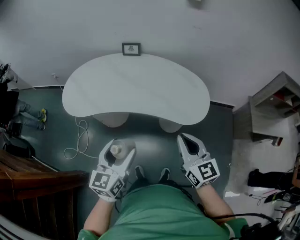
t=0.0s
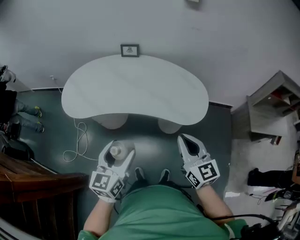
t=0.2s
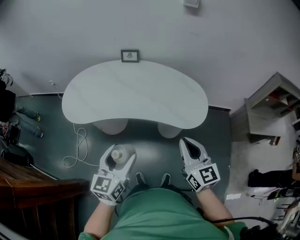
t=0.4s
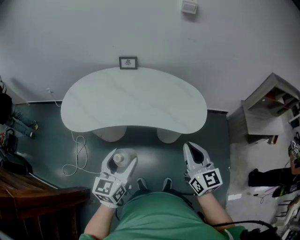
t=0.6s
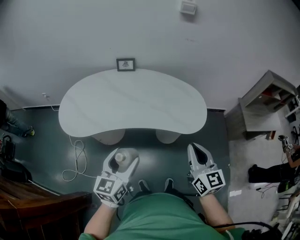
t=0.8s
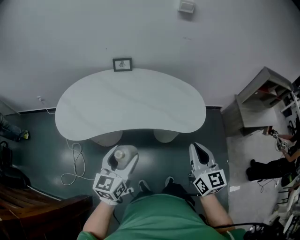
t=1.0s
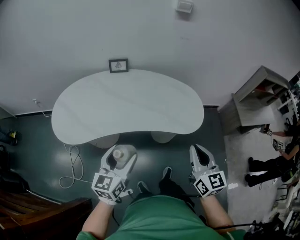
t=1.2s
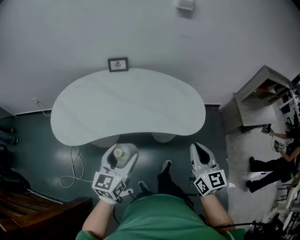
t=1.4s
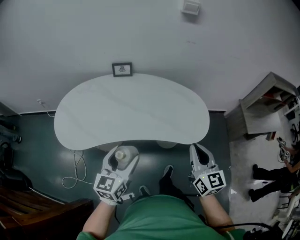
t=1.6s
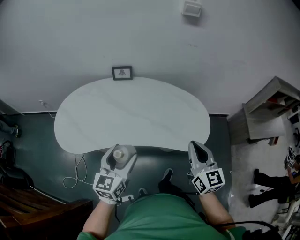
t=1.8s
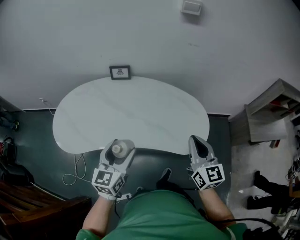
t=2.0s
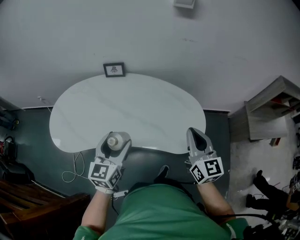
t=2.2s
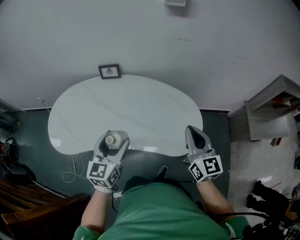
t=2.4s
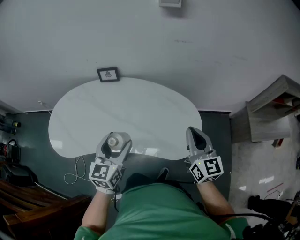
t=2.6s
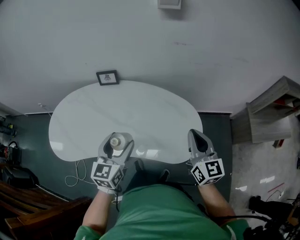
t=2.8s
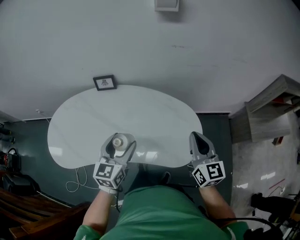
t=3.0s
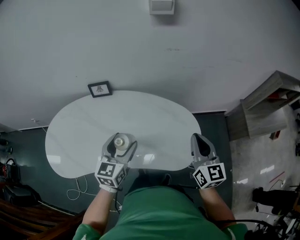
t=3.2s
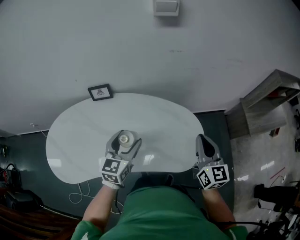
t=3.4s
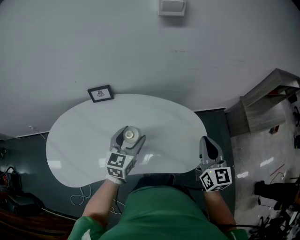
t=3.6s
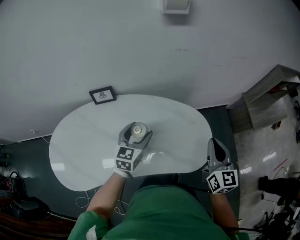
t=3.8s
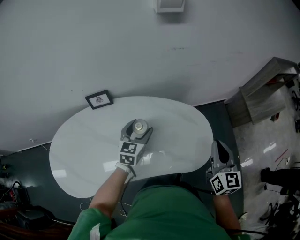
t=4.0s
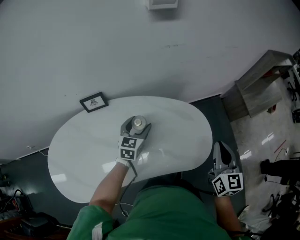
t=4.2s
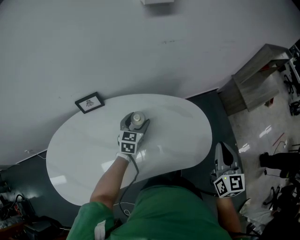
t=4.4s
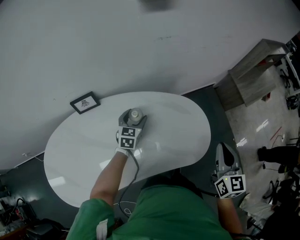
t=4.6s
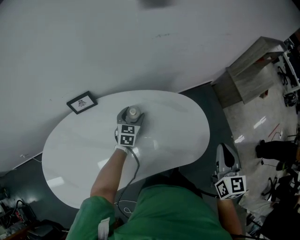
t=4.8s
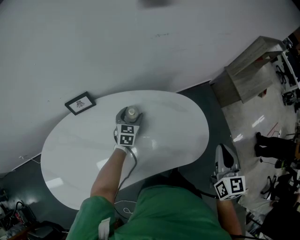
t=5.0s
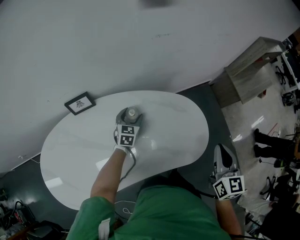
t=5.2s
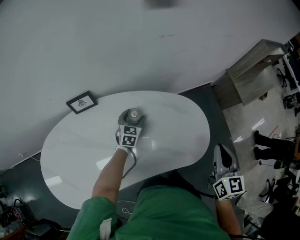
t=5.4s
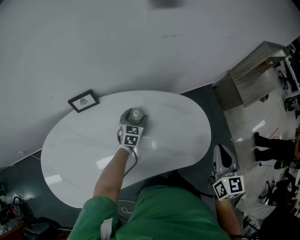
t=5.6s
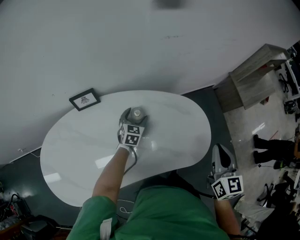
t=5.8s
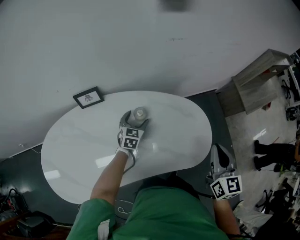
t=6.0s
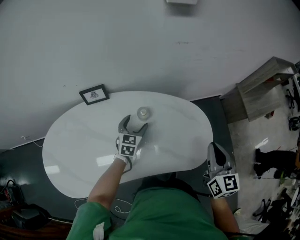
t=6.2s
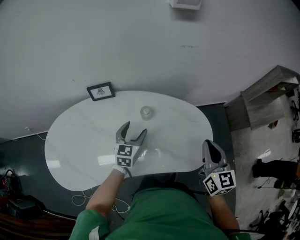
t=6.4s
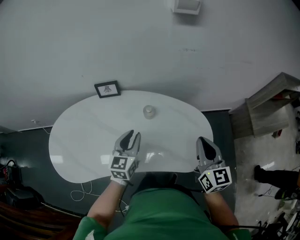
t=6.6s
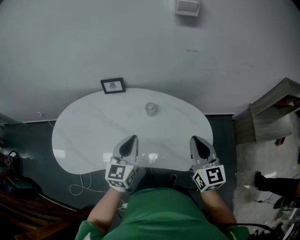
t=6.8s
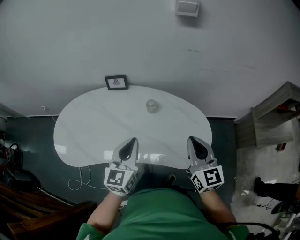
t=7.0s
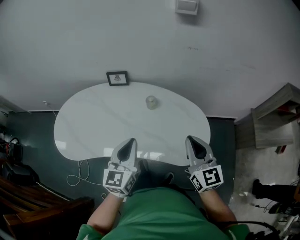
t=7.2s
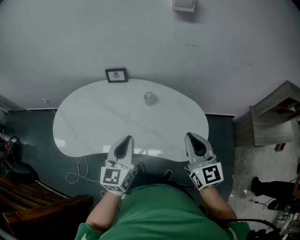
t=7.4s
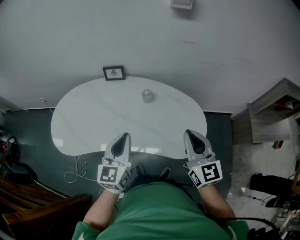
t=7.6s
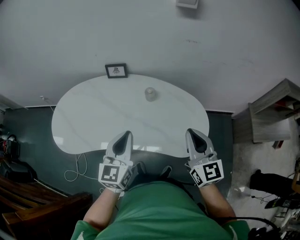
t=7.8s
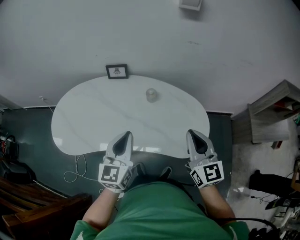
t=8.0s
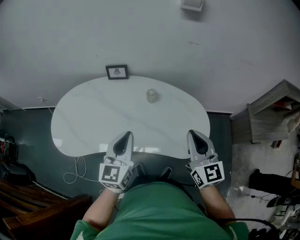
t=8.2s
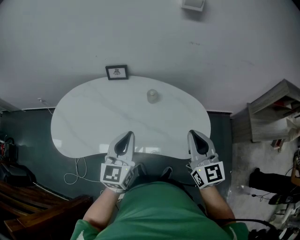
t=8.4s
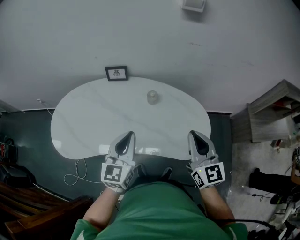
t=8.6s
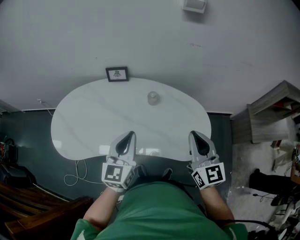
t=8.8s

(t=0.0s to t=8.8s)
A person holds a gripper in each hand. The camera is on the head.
t=0.0s - t=1.4s: The left gripper goes approximately 10 cm forward and to the left, while the right gripper changes its angle by some 20 degrees.
t=1.4s - t=3.0s: Both grippers move forward and to the right, approximately 30 cm.
t=3.0s - t=4.4s: The left gripper moves forward and downward, roughly 30 cm, and changes its angle by some 20 degrees, while the right gripper rotates about 30 degrees.
t=4.4s - t=5.8s: The left gripper is displaced downward by some 10 cm.
t=5.8s - t=7.4s: The right gripper changes place by about 10 cm, and turns by approximately 40 degrees, while the left gripper moves roughly 40 cm, turns by about 40 degrees, and closes.
t=7.4s - t=8.8s: The grippers stay close to where they were, moving slightly.

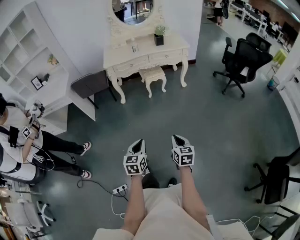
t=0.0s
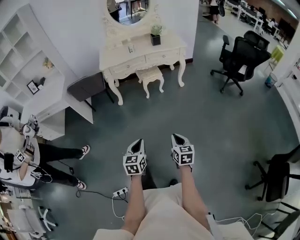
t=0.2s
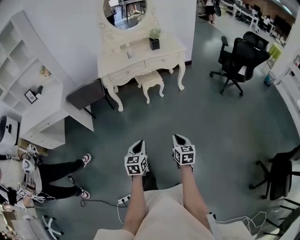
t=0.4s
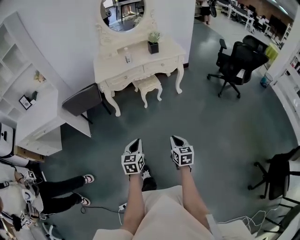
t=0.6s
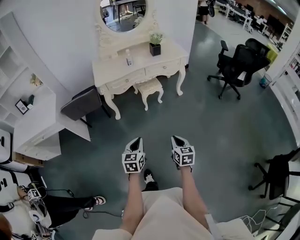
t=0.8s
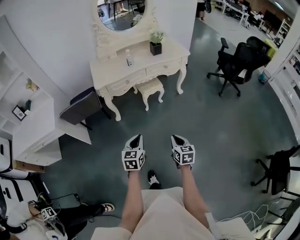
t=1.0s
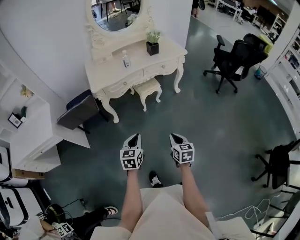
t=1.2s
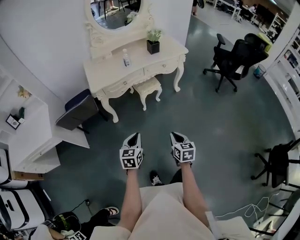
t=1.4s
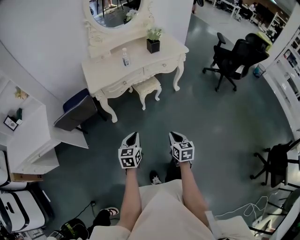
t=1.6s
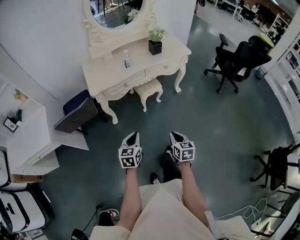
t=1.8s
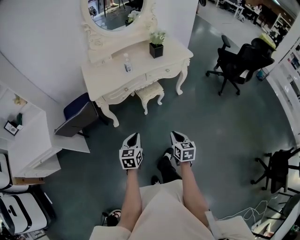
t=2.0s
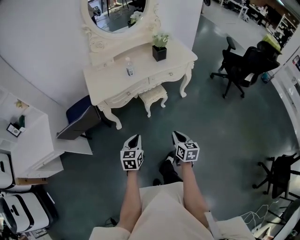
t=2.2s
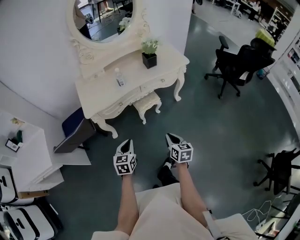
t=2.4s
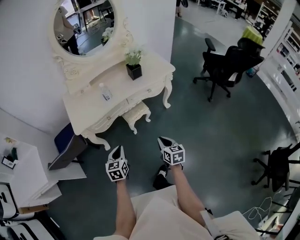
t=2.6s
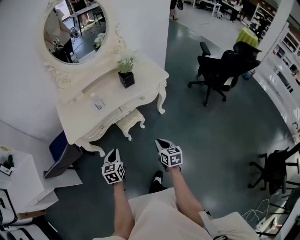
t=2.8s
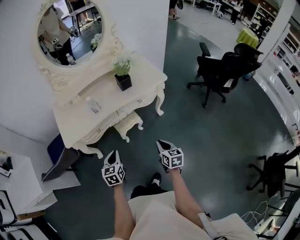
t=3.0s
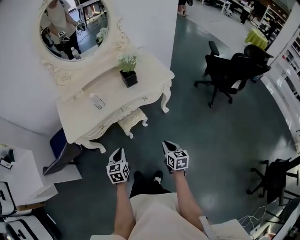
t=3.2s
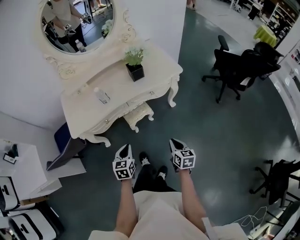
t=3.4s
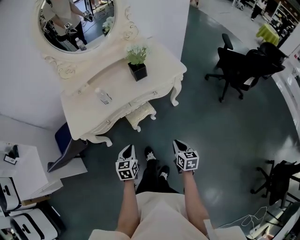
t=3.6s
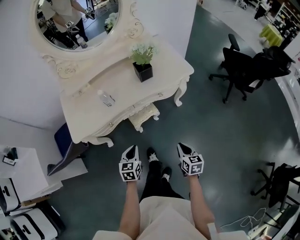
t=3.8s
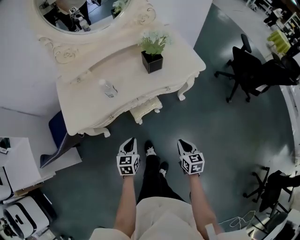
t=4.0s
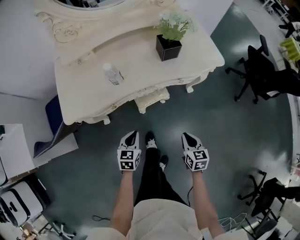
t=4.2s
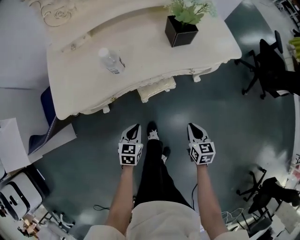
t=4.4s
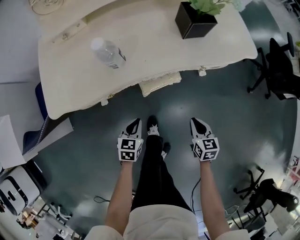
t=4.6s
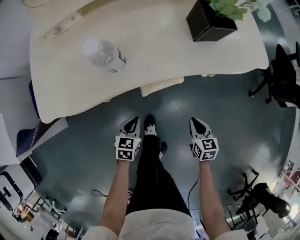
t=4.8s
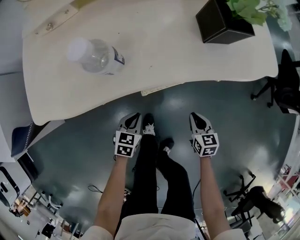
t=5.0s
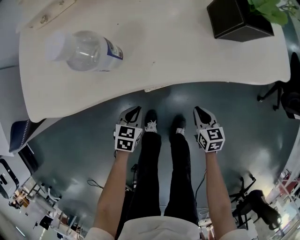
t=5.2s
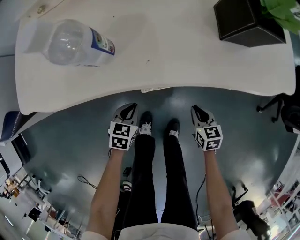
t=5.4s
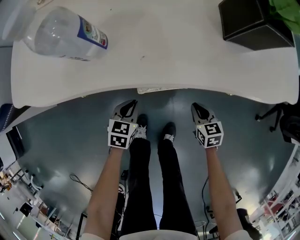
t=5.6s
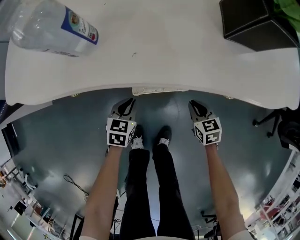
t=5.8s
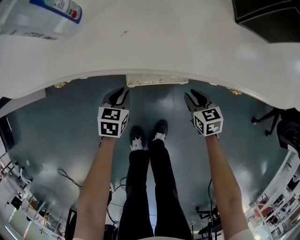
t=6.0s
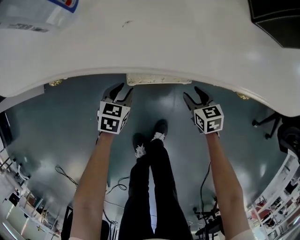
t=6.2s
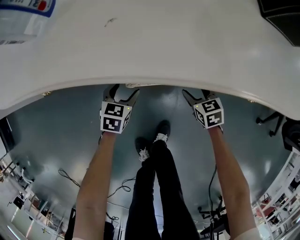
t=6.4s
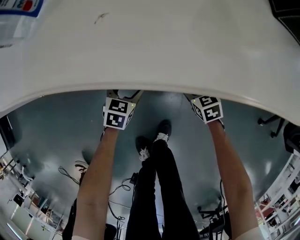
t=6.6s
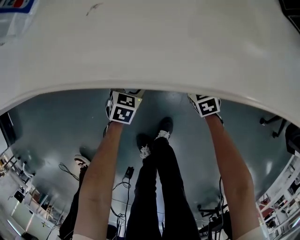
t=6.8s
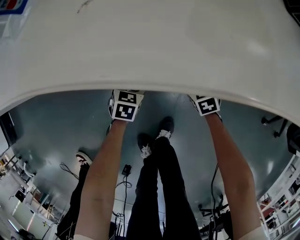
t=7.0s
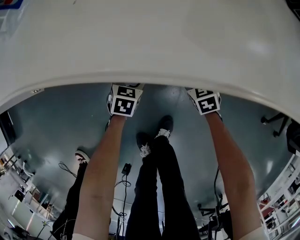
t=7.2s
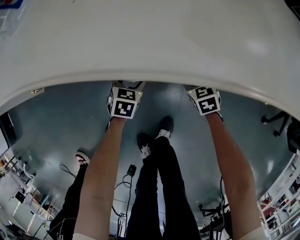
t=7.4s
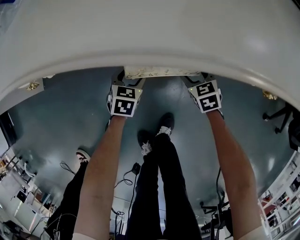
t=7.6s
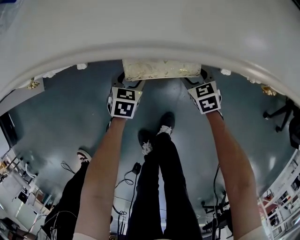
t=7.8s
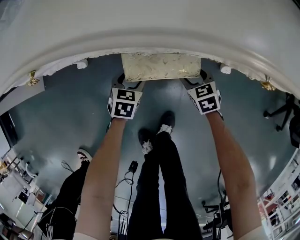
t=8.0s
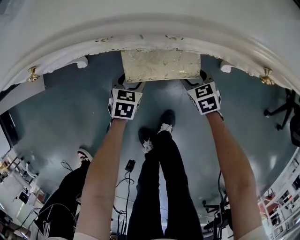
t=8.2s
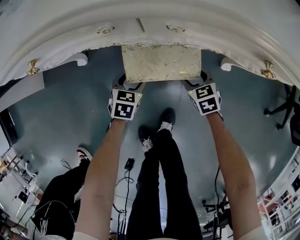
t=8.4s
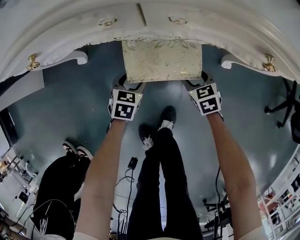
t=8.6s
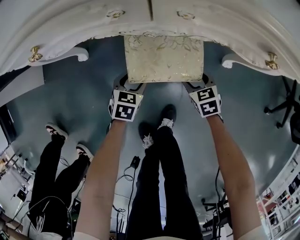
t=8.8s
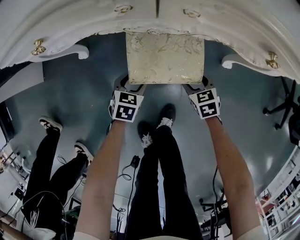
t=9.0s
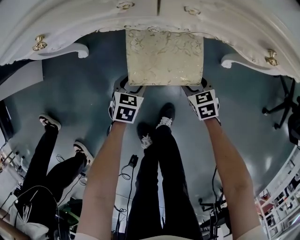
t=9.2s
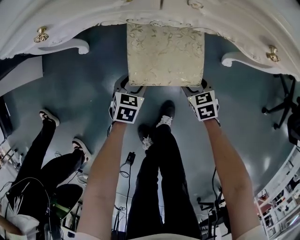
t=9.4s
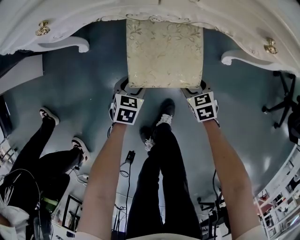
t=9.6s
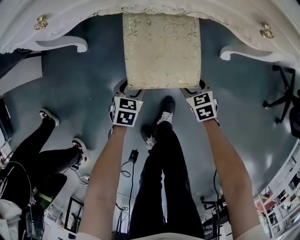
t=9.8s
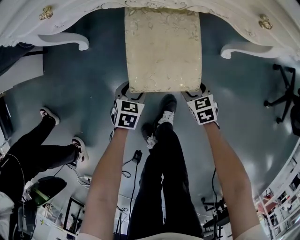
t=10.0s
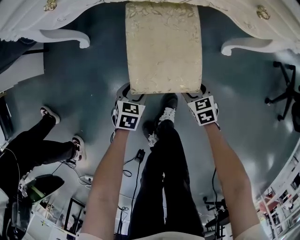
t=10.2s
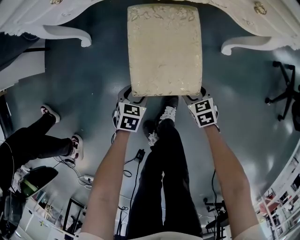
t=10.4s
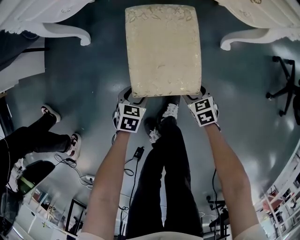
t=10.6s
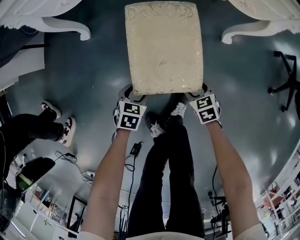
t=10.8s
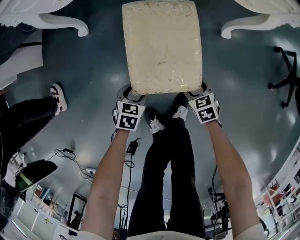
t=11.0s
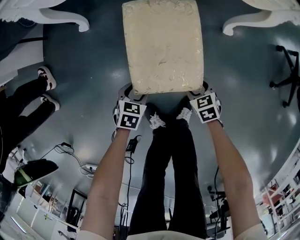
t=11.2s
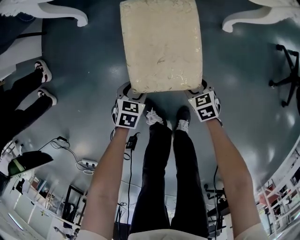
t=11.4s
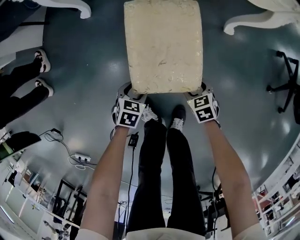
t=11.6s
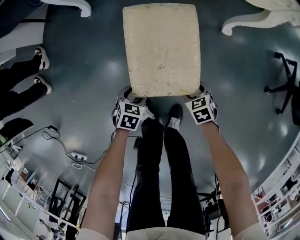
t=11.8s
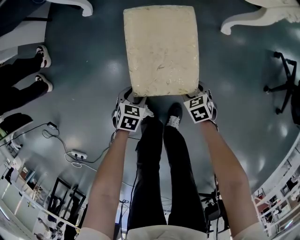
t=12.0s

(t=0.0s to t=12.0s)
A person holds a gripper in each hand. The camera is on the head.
t=0.0s - t=1.6s: Both grippers move forward and to the left, approximately 40 cm.
t=1.6s - t=3.0s: The right gripper is displaced forward and to the right by about 30 cm. Meanwhile the left gripper moves forward, about 30 cm.
t=3.0s - t=4.4s: The grippers both shift downward and forward by some 25 cm.
t=4.4s - t=6.0s: Both grippers move downward, some 25 cm. The right gripper rotates approximately 40 degrees.
t=6.0s - t=7.6s: The two grippers go roughly 10 cm downward. The left gripper opens. Meanwhile the right gripper opens up.
t=7.6s - t=9.0s: Both grippers move backward, some 10 cm.
t=9.0s - t=10.4s: The grippers both shift backward by roughly 15 cm.
t=10.4s - t=12.0s: The two grippers go roughly 20 cm backward.

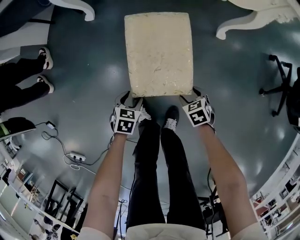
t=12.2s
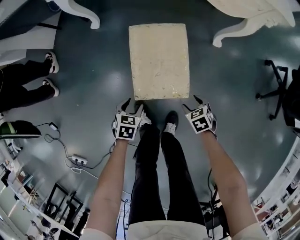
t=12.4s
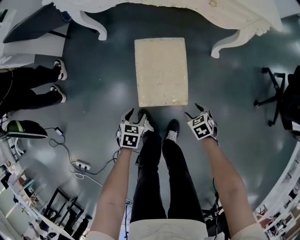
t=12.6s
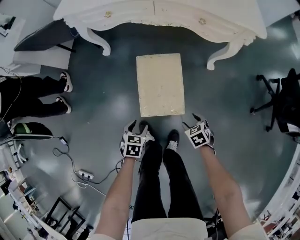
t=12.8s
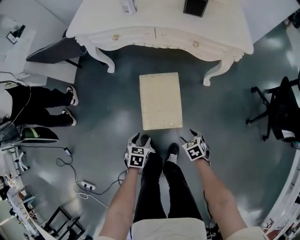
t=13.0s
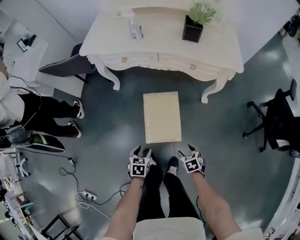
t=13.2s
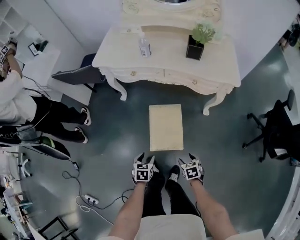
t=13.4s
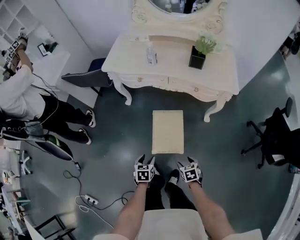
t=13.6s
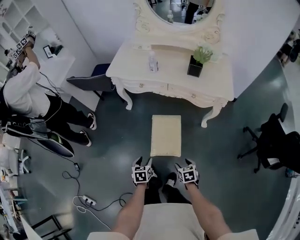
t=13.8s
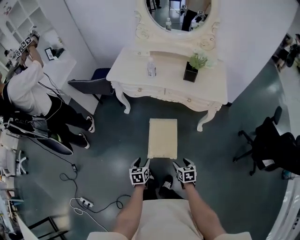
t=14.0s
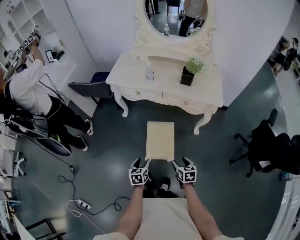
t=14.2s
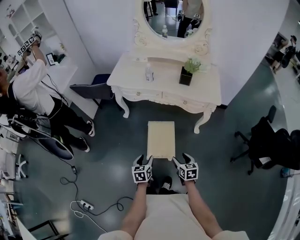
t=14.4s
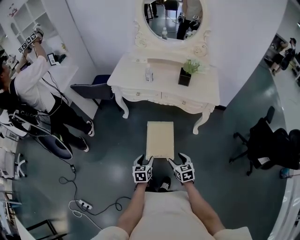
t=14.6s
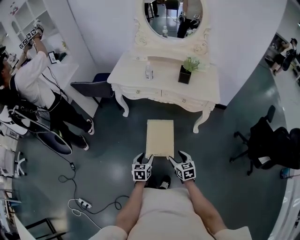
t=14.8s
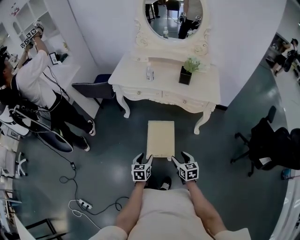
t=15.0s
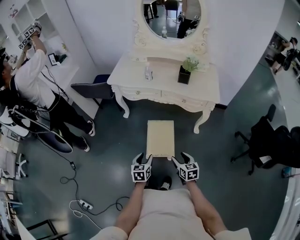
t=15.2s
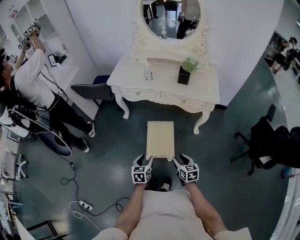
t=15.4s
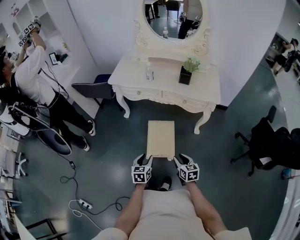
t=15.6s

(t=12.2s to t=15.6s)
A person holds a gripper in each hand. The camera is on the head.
t=12.2s - t=13.8s: The two grippers go some 40 cm upward. The left gripper changes its angle by about 30 degrees.
t=13.8s - t=15.6s: Both grippers move upward, roughly 10 cm. The right gripper rotates some 20 degrees, and closes up.
